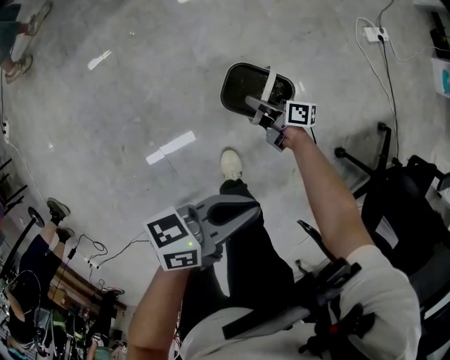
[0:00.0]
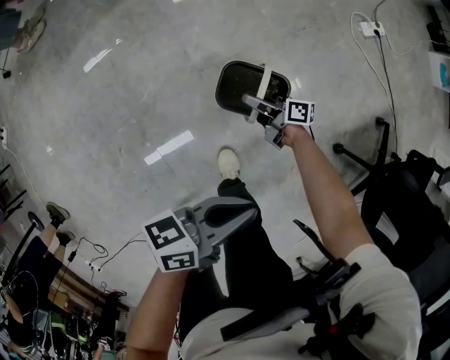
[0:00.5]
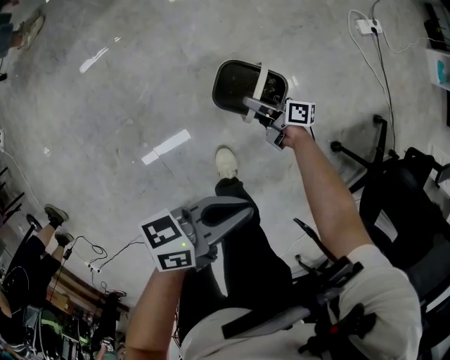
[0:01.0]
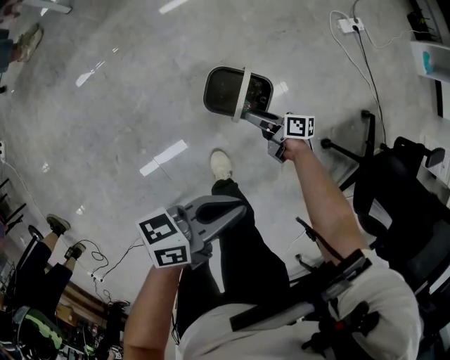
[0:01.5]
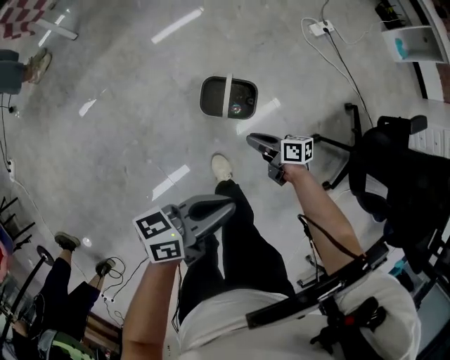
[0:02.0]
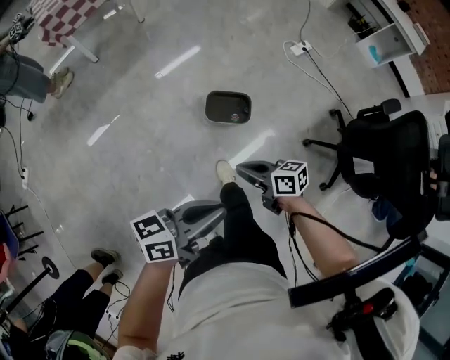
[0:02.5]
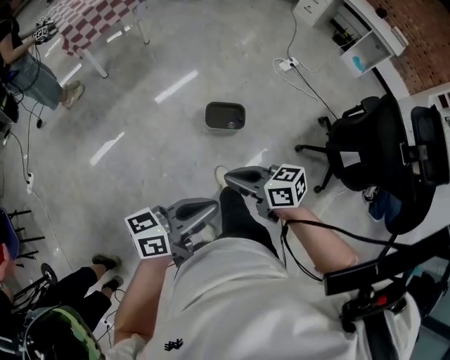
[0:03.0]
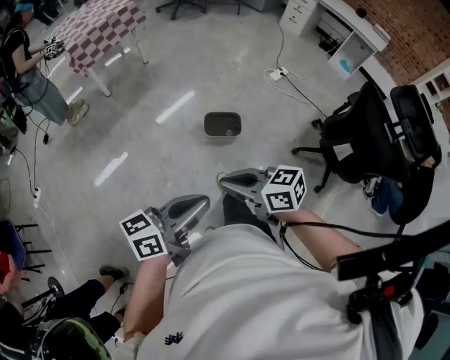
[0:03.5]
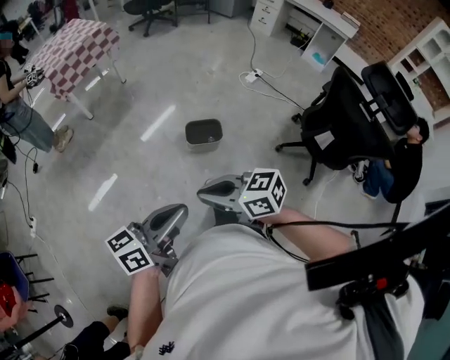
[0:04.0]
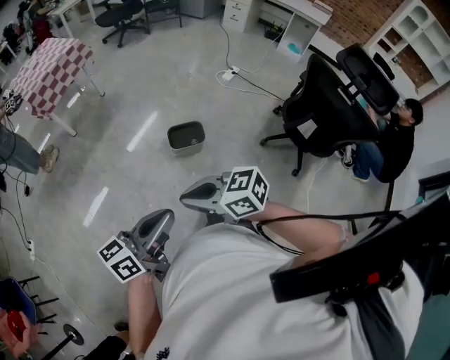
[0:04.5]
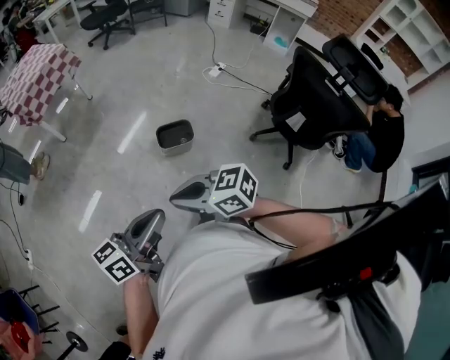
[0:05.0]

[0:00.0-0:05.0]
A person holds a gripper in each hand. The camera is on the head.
0:00.0 to 0:02.5: The right gripper moves upward, approximately 35 cm, rotates roughly 30 degrees, and opens, then closes again. Meanwhile the left gripper travels upward by approximately 25 cm.
0:02.5 to 0:05.0: The left gripper changes place by about 20 cm, while the right gripper goes about 25 cm upward, and changes its angle by about 30 degrees.

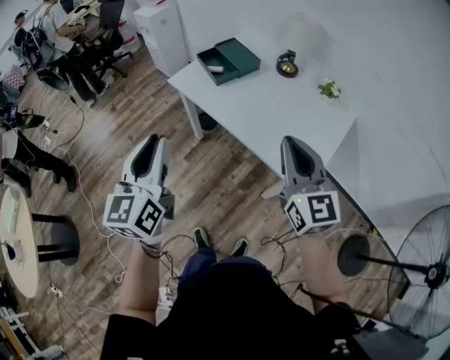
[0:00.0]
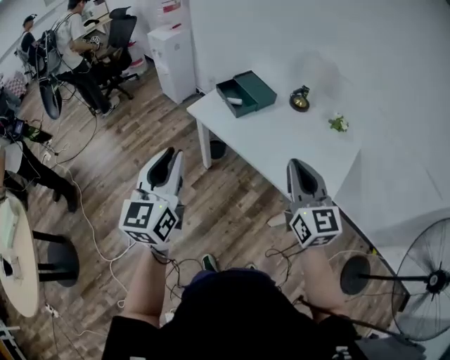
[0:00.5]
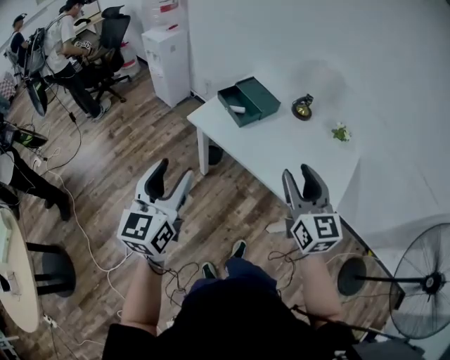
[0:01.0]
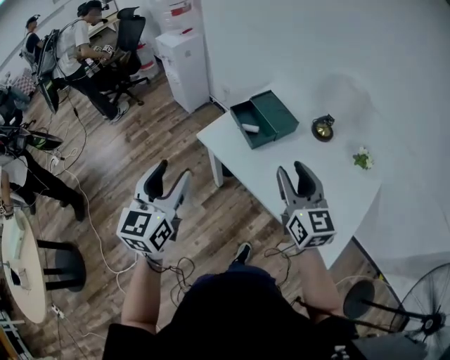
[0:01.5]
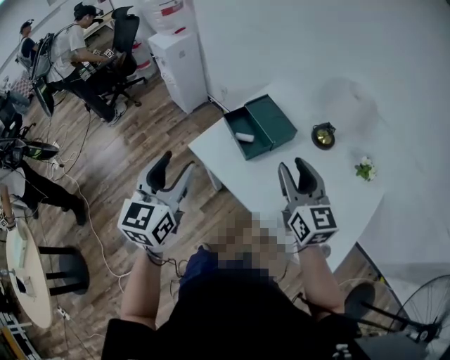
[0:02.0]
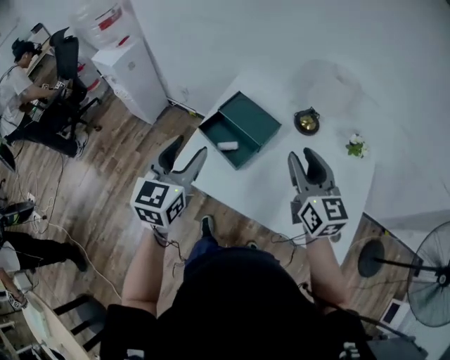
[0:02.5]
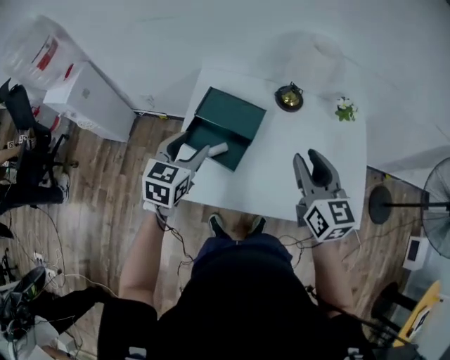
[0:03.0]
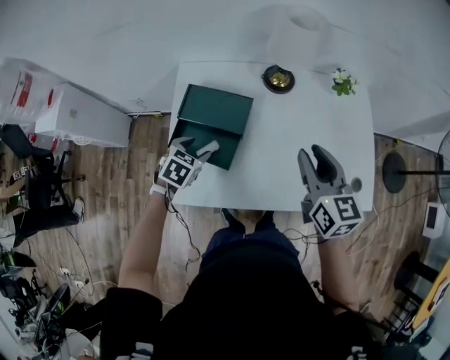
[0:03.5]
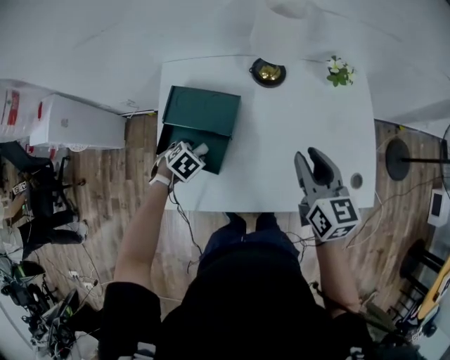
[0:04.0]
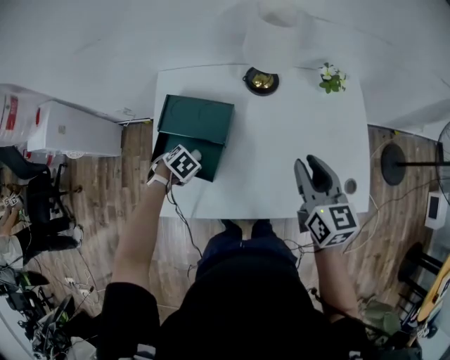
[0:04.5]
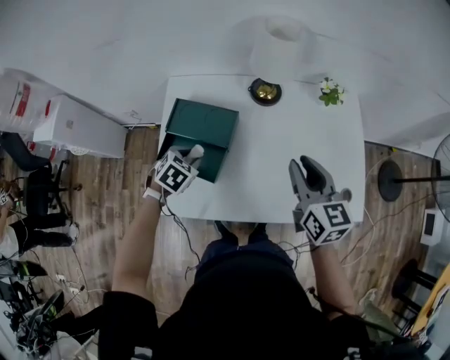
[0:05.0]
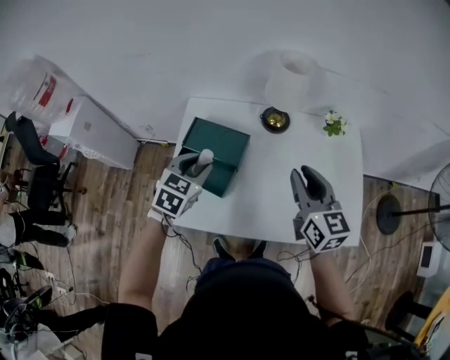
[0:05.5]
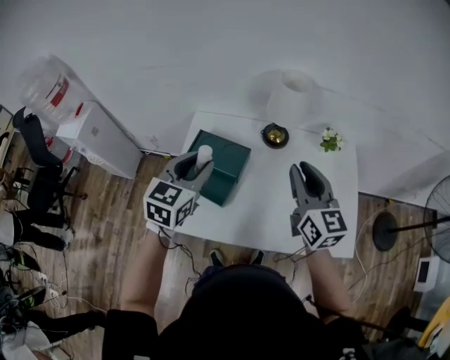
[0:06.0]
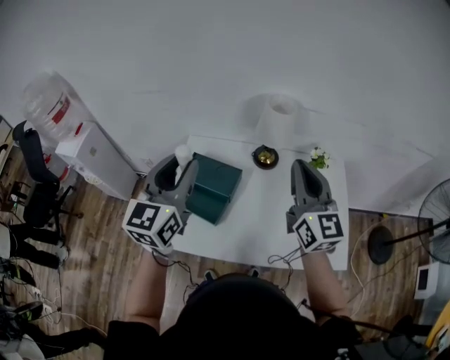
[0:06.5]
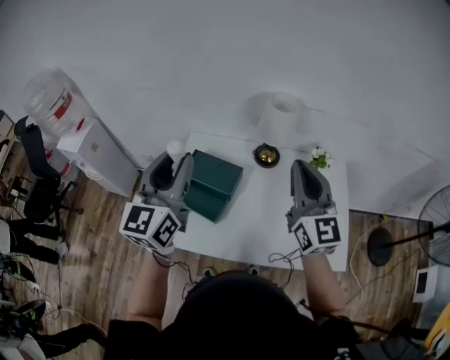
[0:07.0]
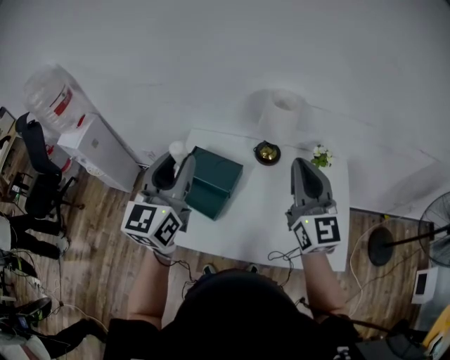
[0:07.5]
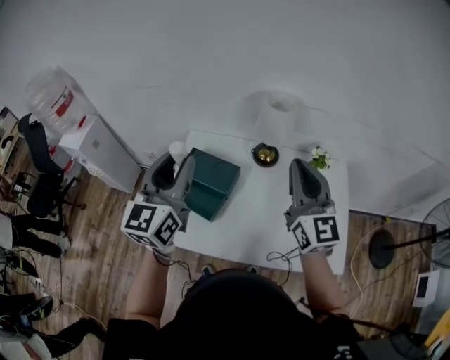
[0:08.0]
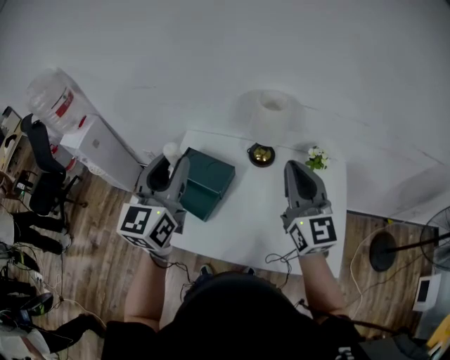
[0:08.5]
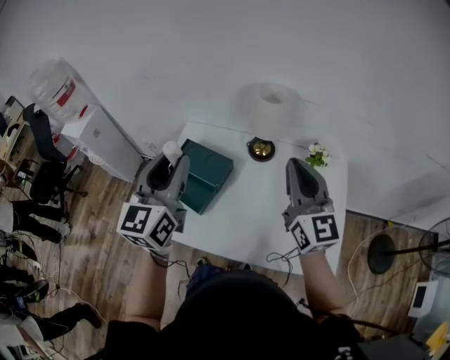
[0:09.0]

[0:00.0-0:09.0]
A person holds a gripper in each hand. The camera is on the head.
0:00.0 to 0:02.0: The two grippers go some 35 cm forward. The left gripper opens up. The right gripper opens up.
0:02.0 to 0:04.5: The right gripper ends up approximately 20 cm from where it was, and turns by about 50 degrees. Meanwhile the left gripper travels downward by about 40 cm, tips its fingers downward by approximately 70 degrees, and closes up.
0:04.5 to 0:07.0: The right gripper is displaced upward by some 25 cm, tilts its fingers approximately 30 degrees upward, and closes up. The left gripper goes some 50 cm upward, and angles its fingers upward, by approximately 90 degrees.
0:07.0 to 0:09.0: Both grippers travel together to the right, roughly 5 cm.

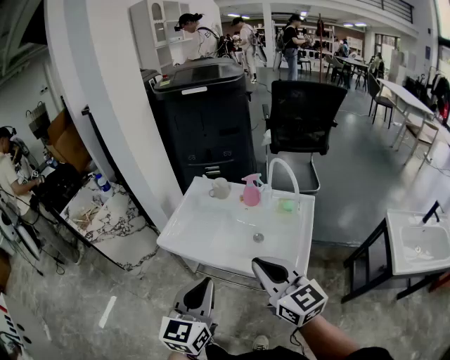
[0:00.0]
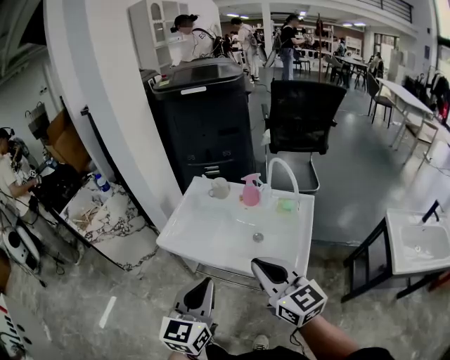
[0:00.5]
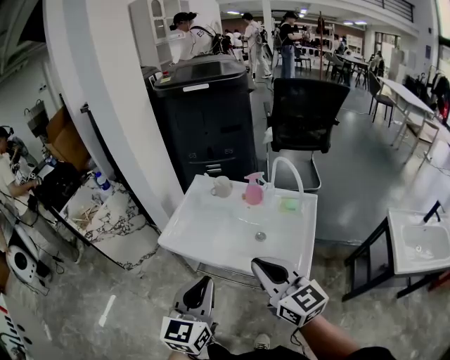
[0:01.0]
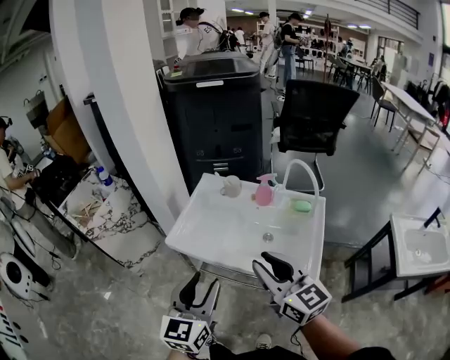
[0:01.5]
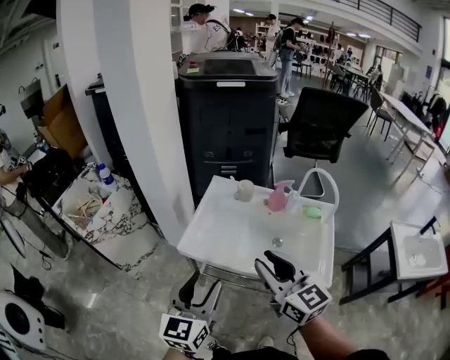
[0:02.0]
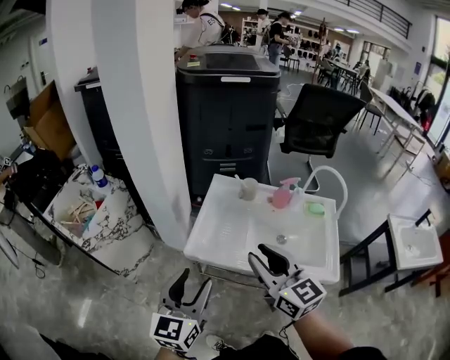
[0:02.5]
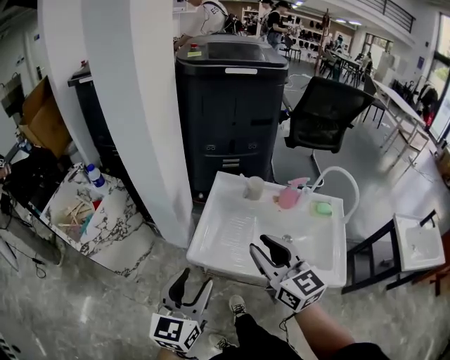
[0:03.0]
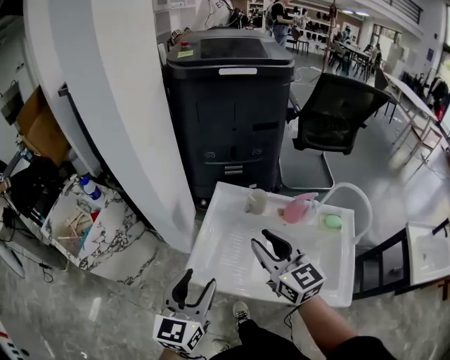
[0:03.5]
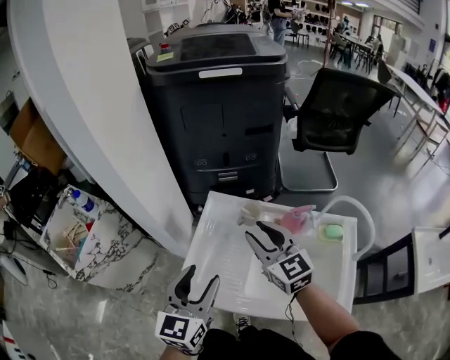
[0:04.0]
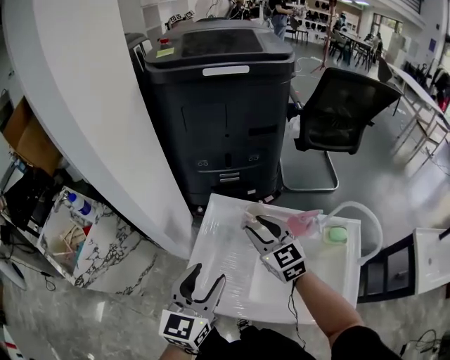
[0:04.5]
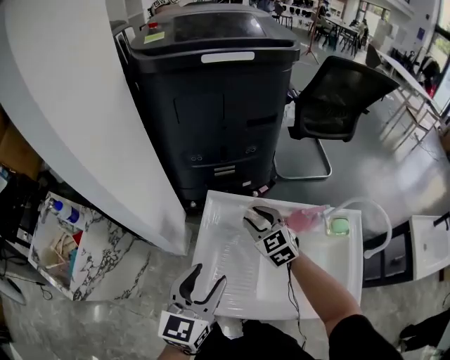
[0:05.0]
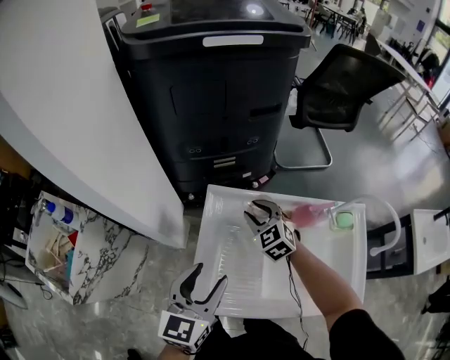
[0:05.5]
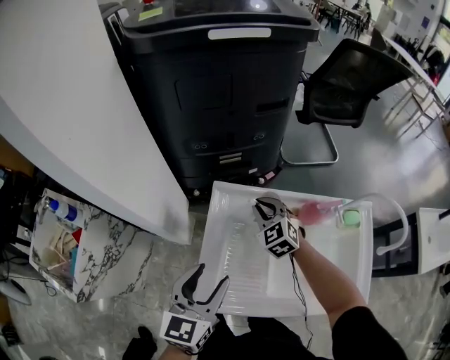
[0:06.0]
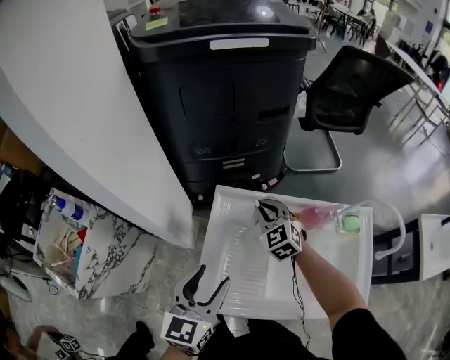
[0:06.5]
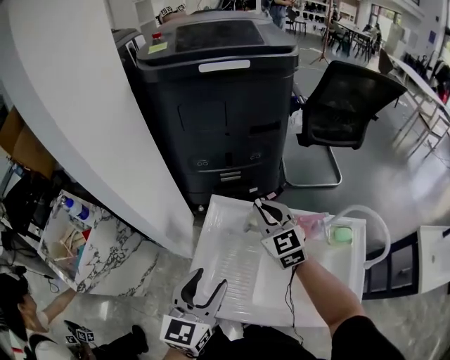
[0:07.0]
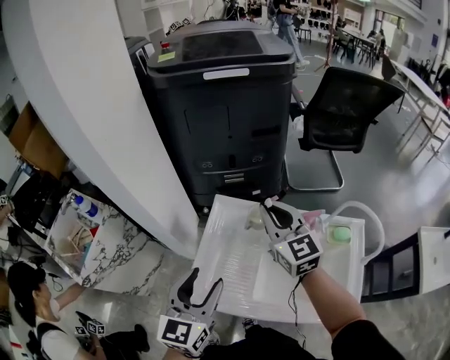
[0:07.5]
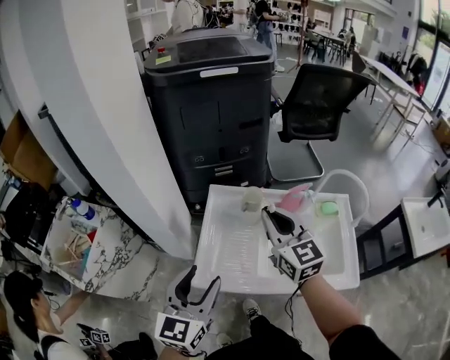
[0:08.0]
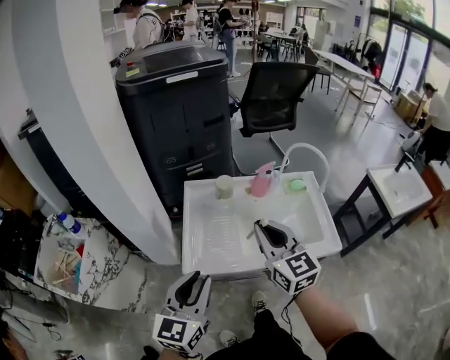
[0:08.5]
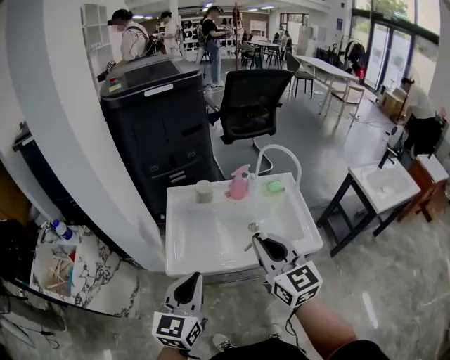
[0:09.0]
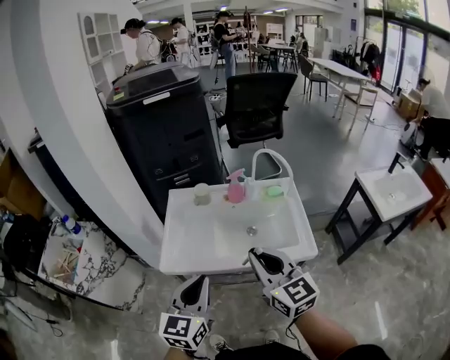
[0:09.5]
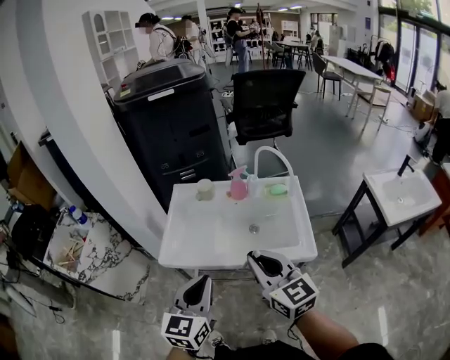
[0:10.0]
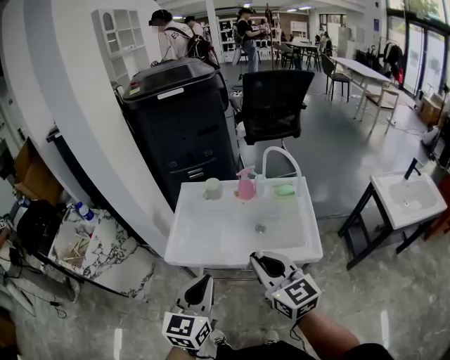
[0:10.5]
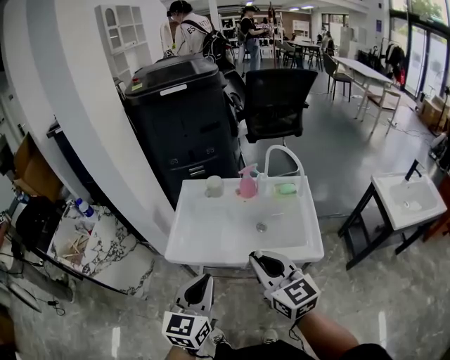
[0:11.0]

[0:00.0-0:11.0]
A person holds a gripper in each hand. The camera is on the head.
0:00.0 to 0:02.0: The grippers both shift to the left and forward by some 15 cm. The left gripper opens its fingers, while the right gripper opens its fingers.
0:02.0 to 0:03.5: Both grippers travel together forward, approximately 20 cm.
0:03.5 to 0:05.5: The right gripper is displaced forward and downward by roughly 30 cm, and turns by about 40 degrees. Meanwhile the left gripper heads forward, covering some 15 cm.
0:05.5 to 0:07.5: The right gripper heads upward, covering approximately 20 cm, turns by some 30 degrees, and closes its fingers. The left gripper shifts approximately 10 cm upward and backward.
0:07.5 to 0:09.0: The left gripper goes approximately 20 cm backward, swivels some 20 degrees, and closes up, while the right gripper moves backward, approximately 35 cm, and swivels approximately 20 degrees.
0:09.0 to 0:11.0: The left gripper shifts some 10 cm to the right and backward, while the right gripper heads backward and to the right, covering roughly 10 cm.

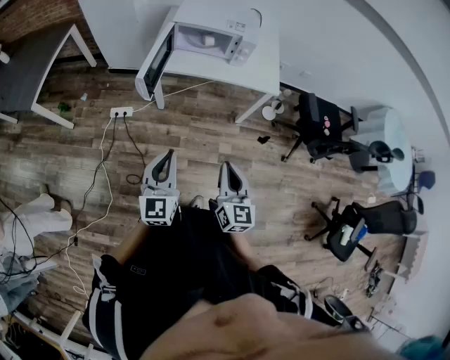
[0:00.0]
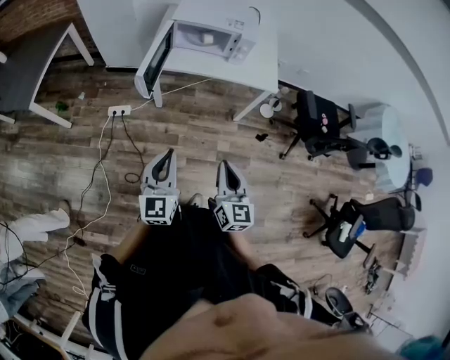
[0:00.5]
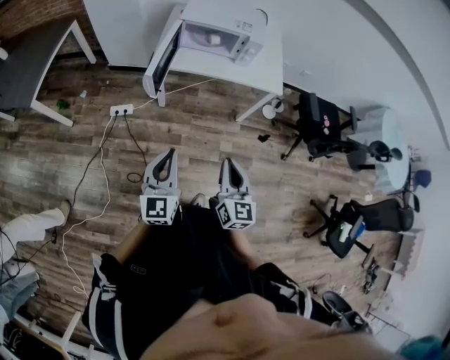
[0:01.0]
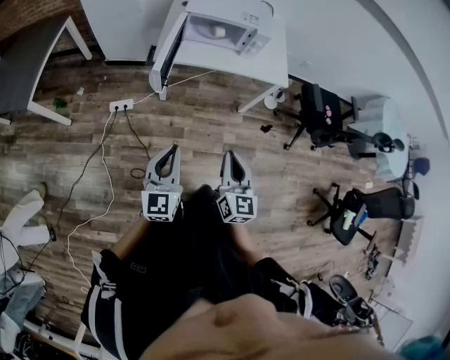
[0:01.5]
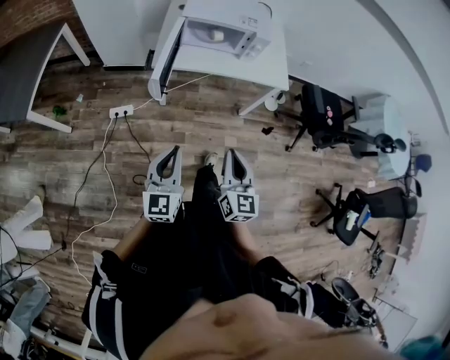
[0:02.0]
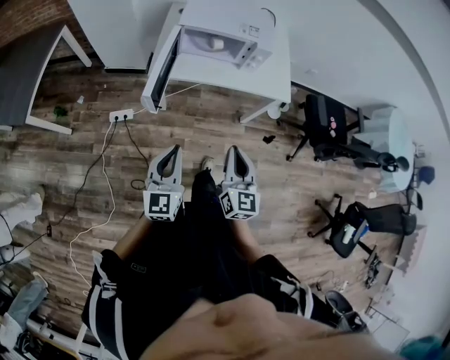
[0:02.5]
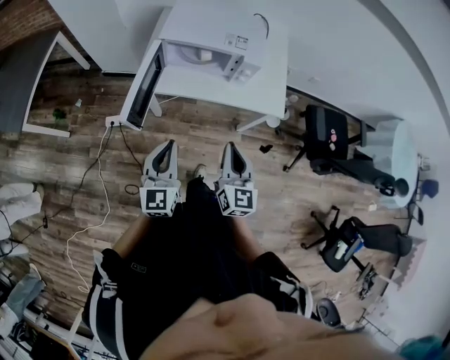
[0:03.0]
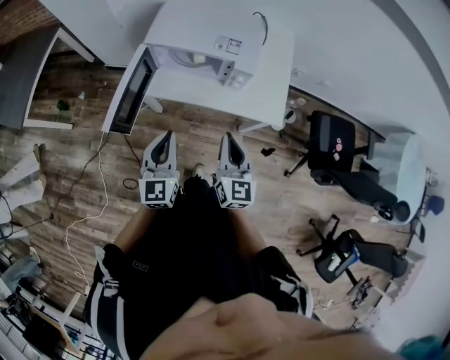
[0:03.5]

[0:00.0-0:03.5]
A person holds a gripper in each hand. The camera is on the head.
0:00.0 to 0:02.0: The grippers both shift to the left by roughly 10 cm.
0:02.0 to 0:03.5: The two grippers go about 35 cm forward and to the right.
